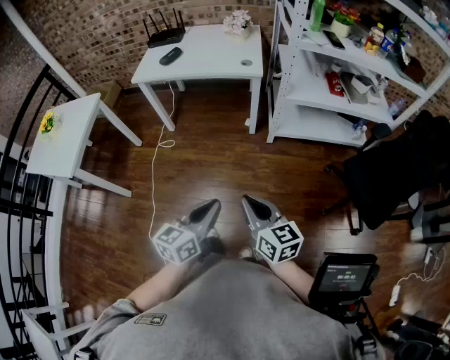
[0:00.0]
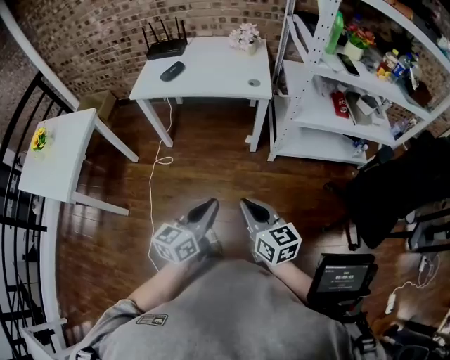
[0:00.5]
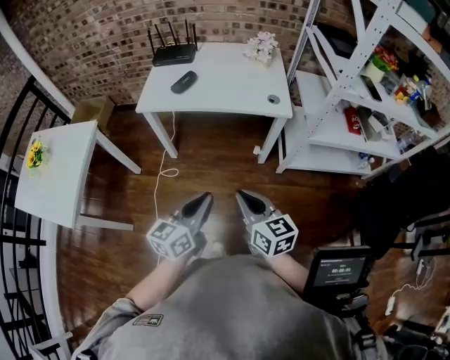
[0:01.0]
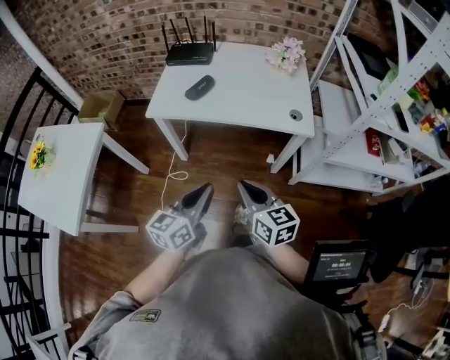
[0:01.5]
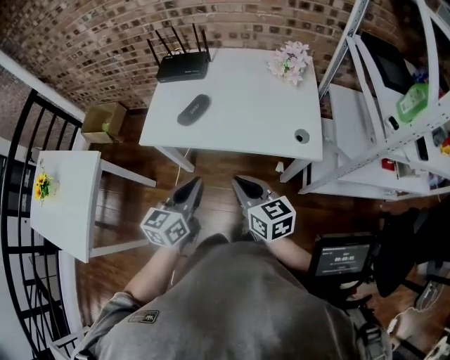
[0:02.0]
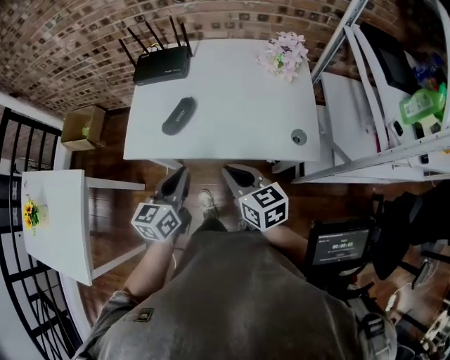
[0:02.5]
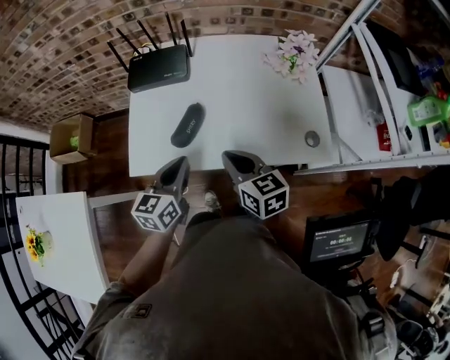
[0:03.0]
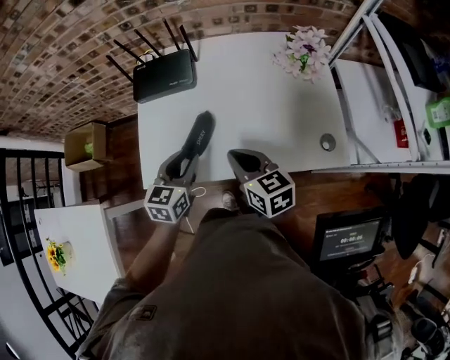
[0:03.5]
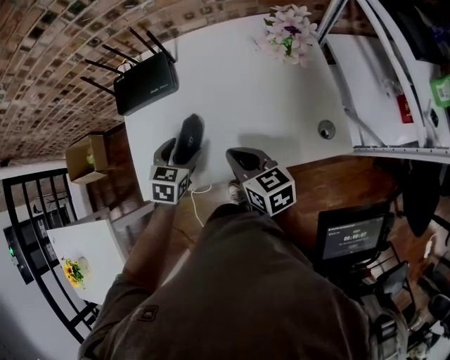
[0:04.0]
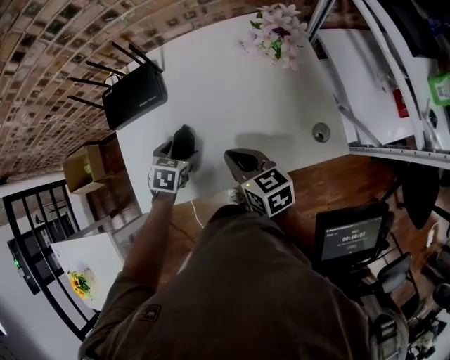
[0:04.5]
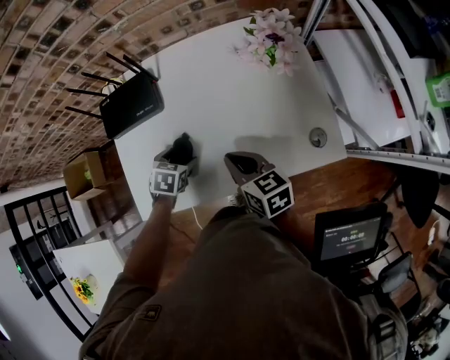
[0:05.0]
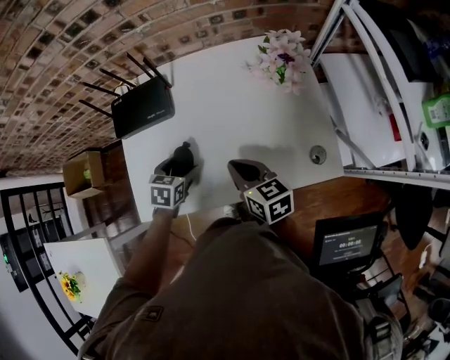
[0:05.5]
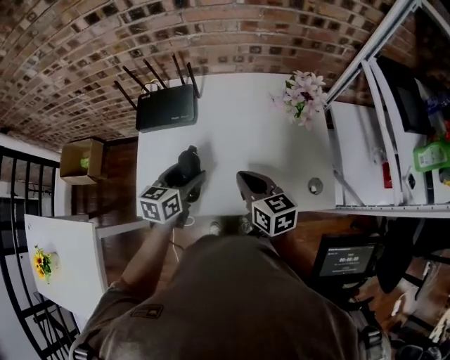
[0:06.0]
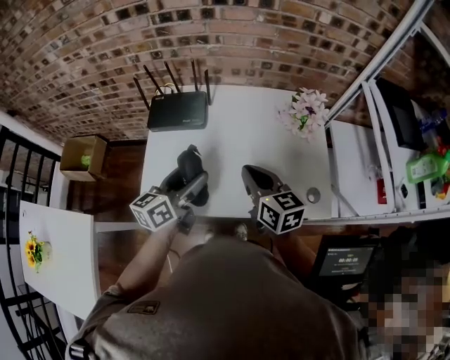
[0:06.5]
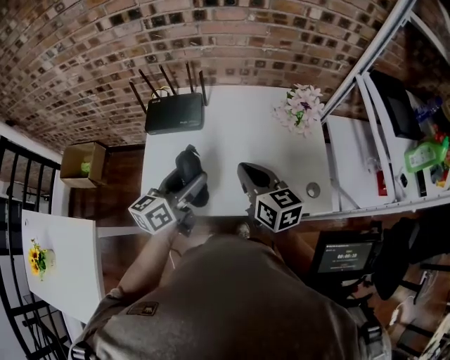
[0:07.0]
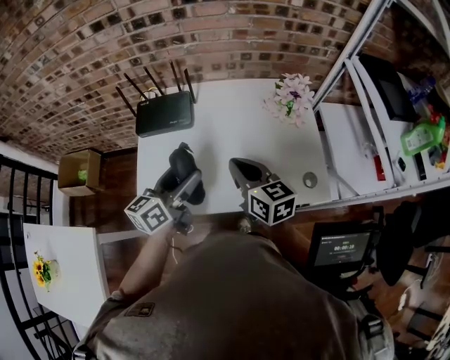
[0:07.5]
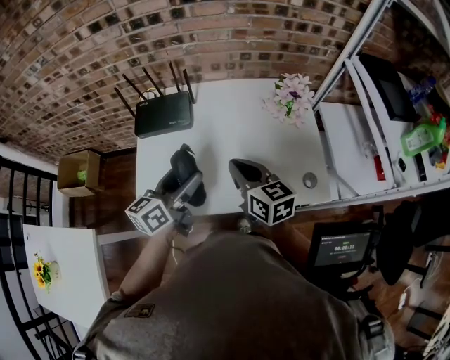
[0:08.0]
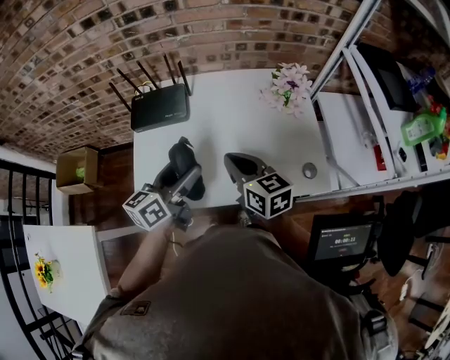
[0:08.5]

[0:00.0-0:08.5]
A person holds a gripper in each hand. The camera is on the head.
0:00.0 to 0:02.0: The pair of grippers is taken forward, roughly 60 cm.
0:02.0 to 0:04.0: The left gripper is displaced forward and downward by approximately 35 cm, points its fingers roughly 30 degrees further downward, and opens its fingers. Meanwhile the right gripper heads forward, covering some 25 cm.
0:04.0 to 0:06.5: The right gripper heads upward, covering some 10 cm; the left gripper moves upward, roughly 15 cm, and tilts its fingers roughly 40 degrees upward.
0:06.5 to 0:08.5: There are only small adjustments of the grippers.

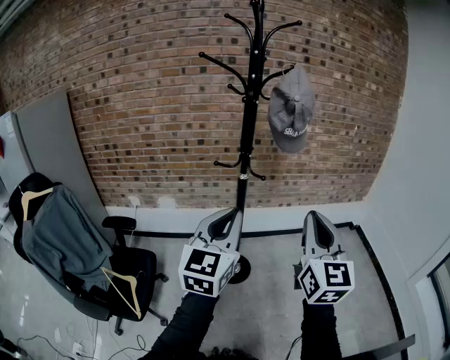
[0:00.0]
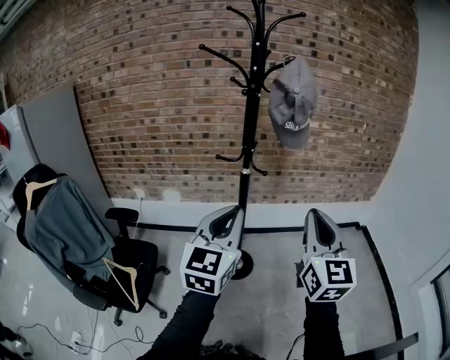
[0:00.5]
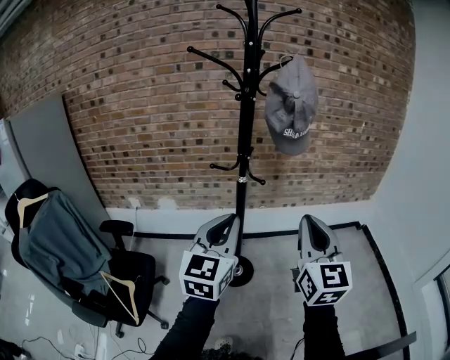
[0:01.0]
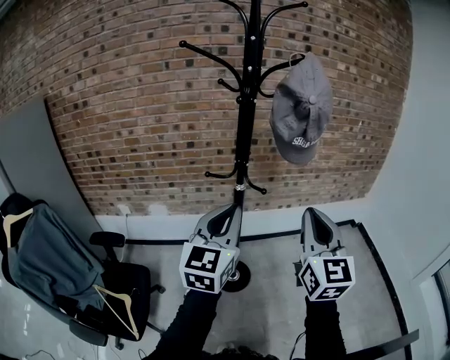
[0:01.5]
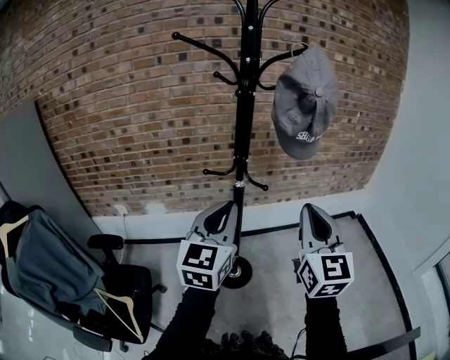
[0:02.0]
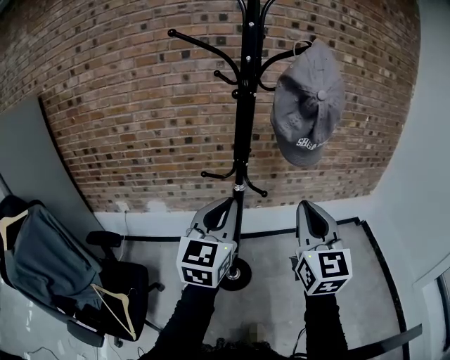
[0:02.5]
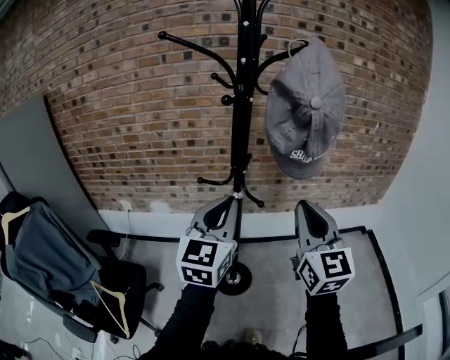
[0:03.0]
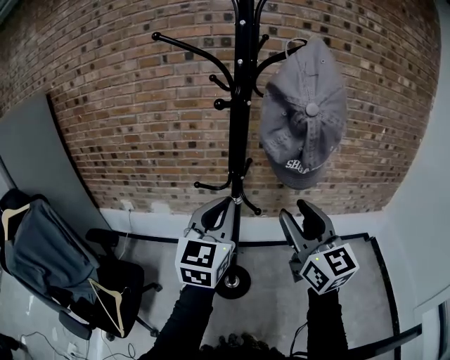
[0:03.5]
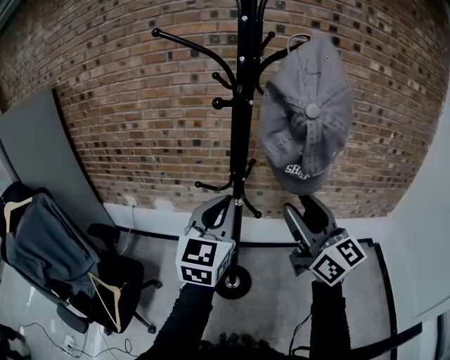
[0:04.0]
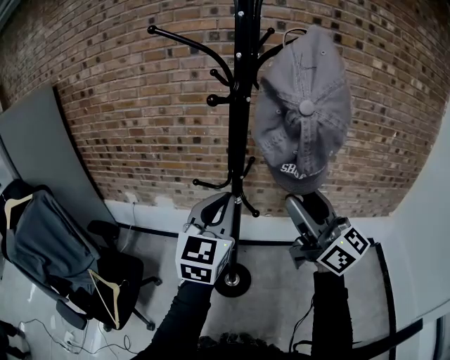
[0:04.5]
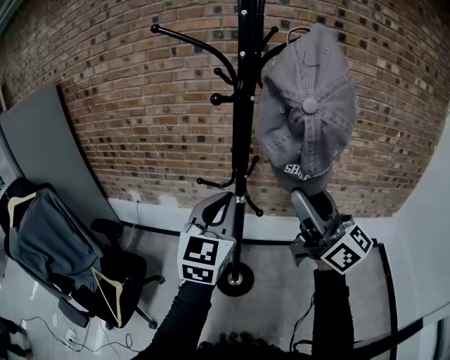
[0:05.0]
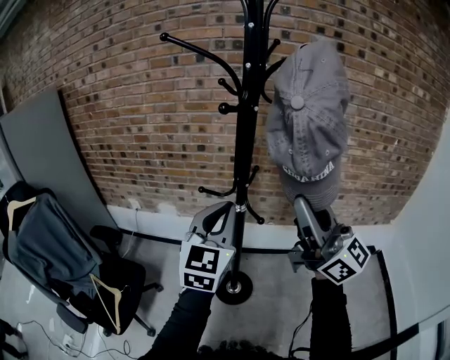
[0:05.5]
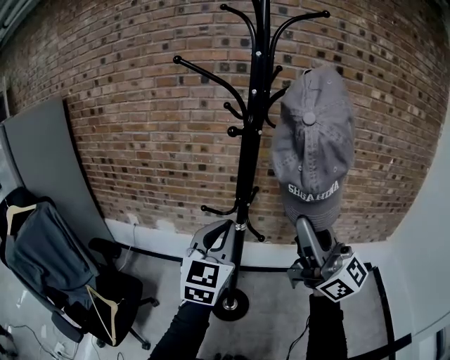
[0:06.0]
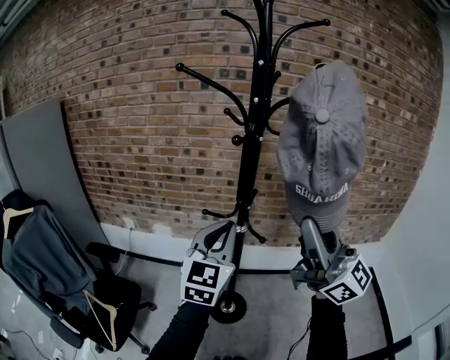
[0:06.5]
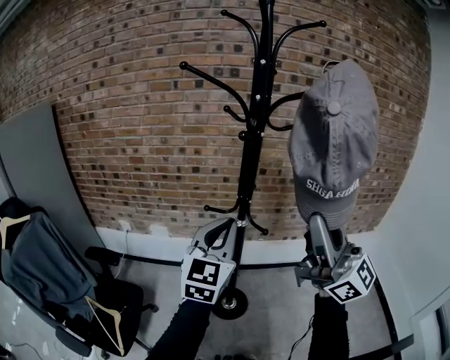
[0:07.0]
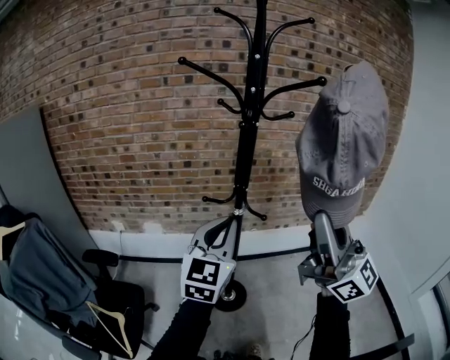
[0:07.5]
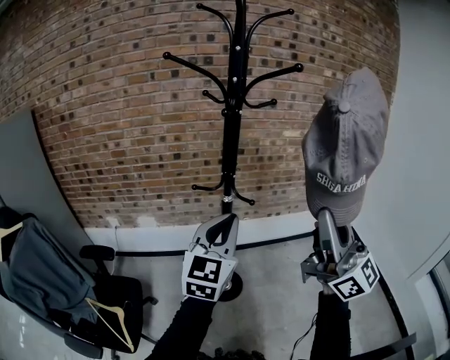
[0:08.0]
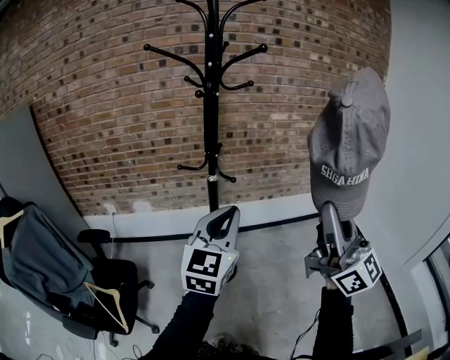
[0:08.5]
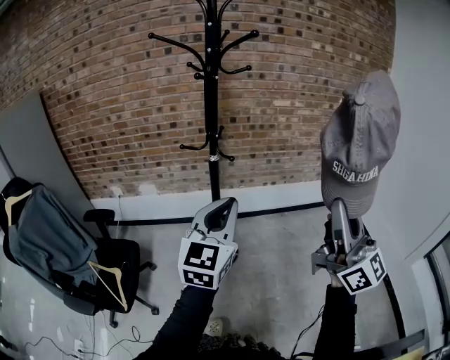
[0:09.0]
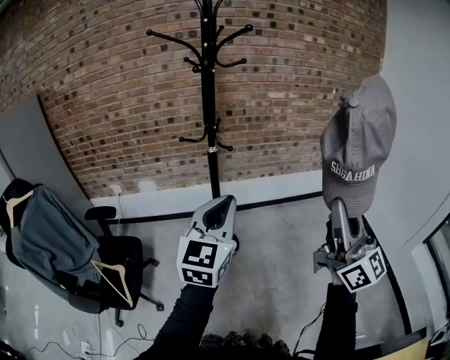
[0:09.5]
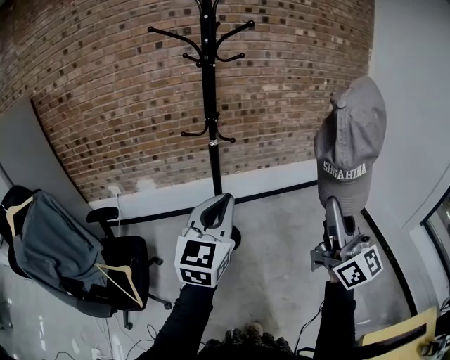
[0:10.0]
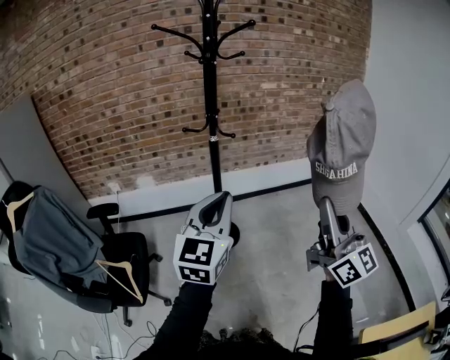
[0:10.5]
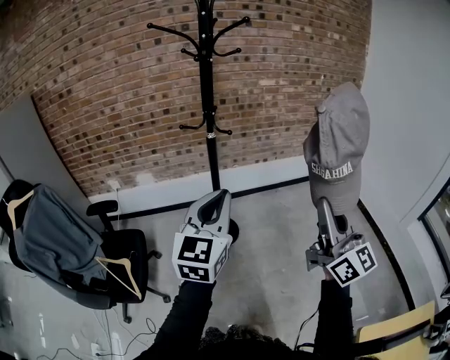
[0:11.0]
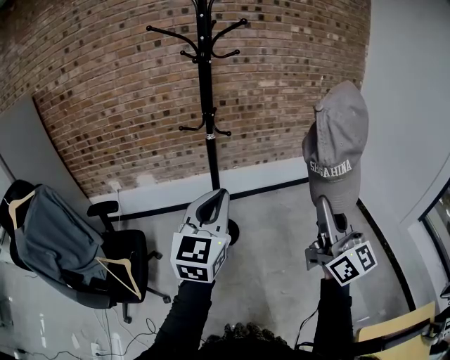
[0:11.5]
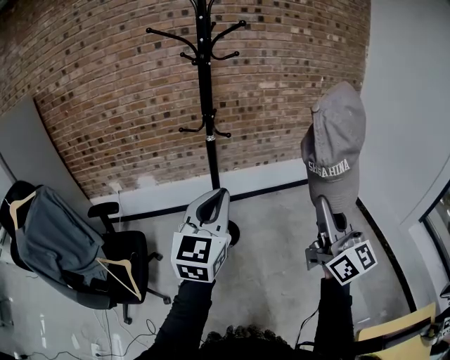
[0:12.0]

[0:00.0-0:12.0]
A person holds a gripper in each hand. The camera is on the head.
0:00.0 to 0:02.0: The two grippers go about 15 cm forward.
0:02.0 to 0:04.0: The left gripper travels forward and to the right by roughly 10 cm; the right gripper is displaced forward by some 15 cm, turns by approximately 40 degrees, and opens.
0:04.0 to 0:06.0: The right gripper shifts approximately 5 cm upward, turns by approximately 20 degrees, and closes its fingers.
0:06.0 to 0:08.0: Both grippers travel together backward, roughly 15 cm. The right gripper rotates approximately 20 degrees.
0:08.0 to 0:10.0: The right gripper travels backward and downward by some 20 cm. Meanwhile the left gripper heads backward, covering some 20 cm.
0:10.0 to 0:12.0: The grippers make only small movements.

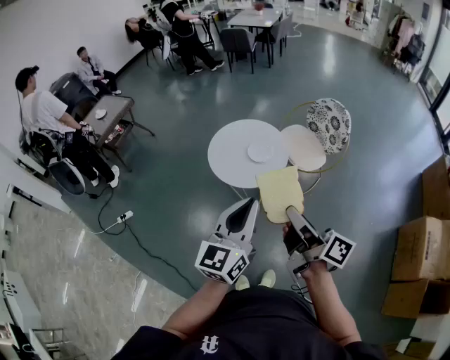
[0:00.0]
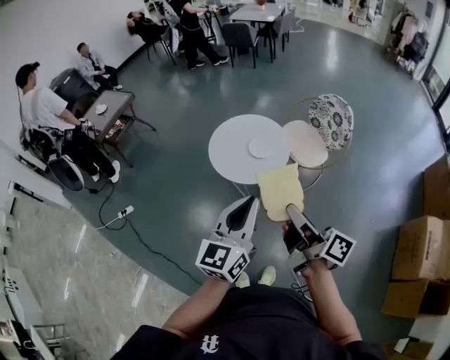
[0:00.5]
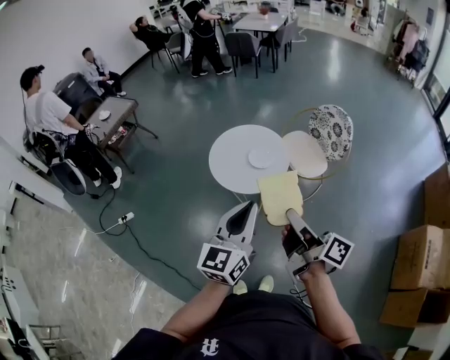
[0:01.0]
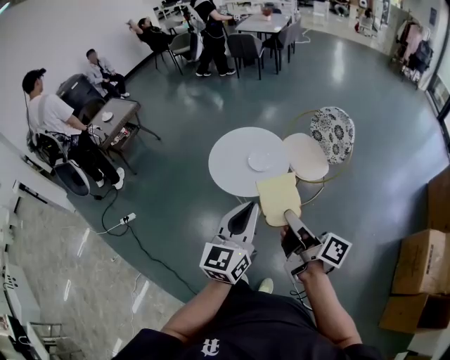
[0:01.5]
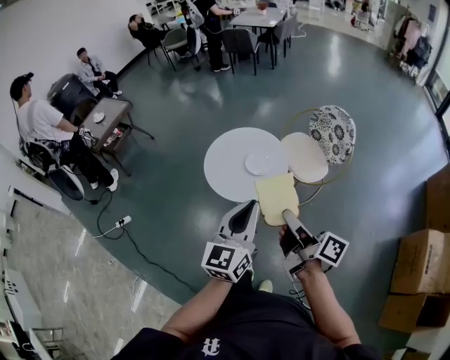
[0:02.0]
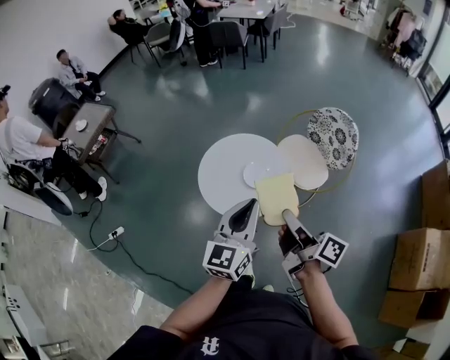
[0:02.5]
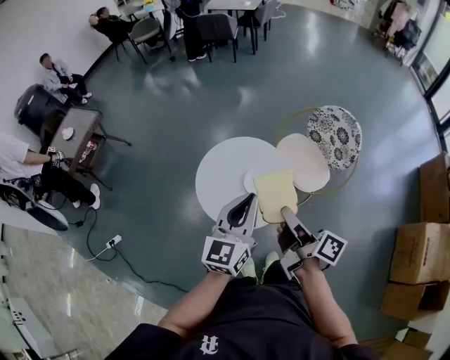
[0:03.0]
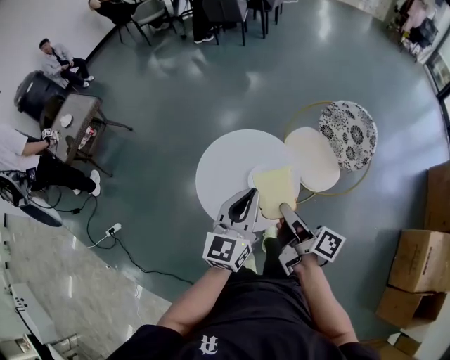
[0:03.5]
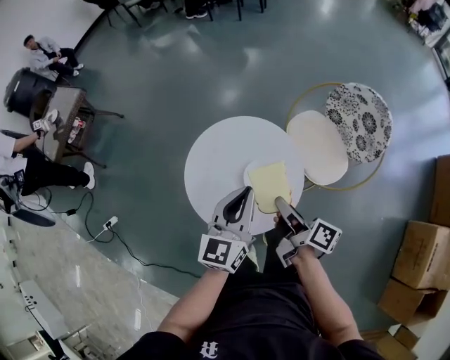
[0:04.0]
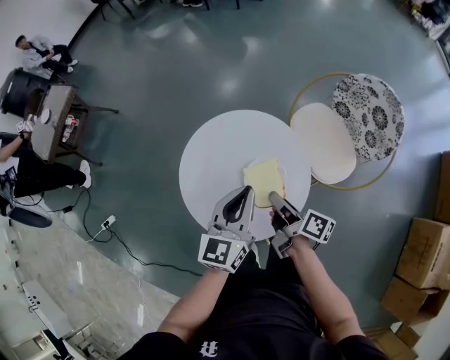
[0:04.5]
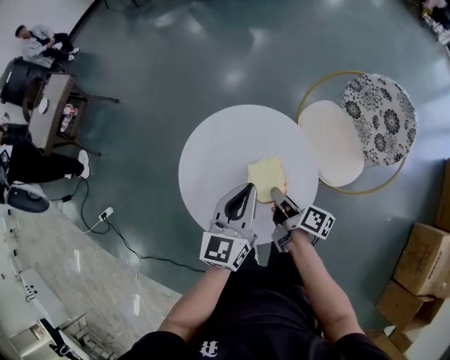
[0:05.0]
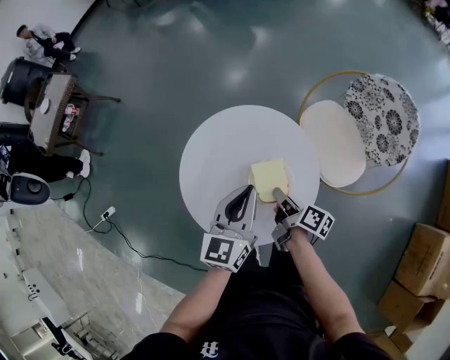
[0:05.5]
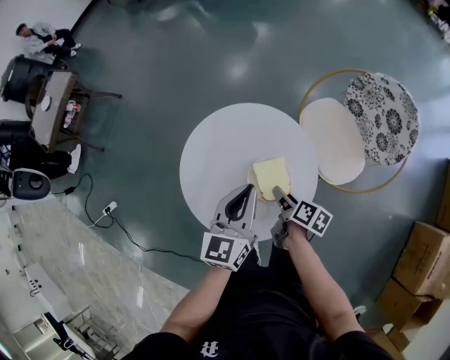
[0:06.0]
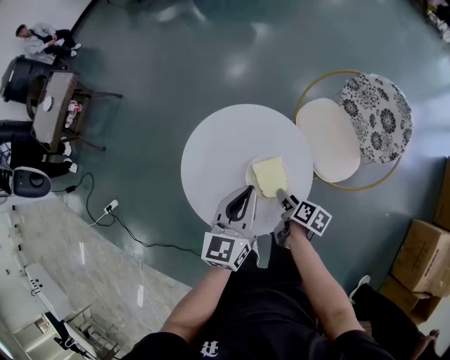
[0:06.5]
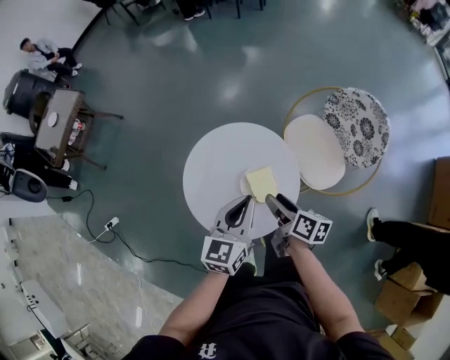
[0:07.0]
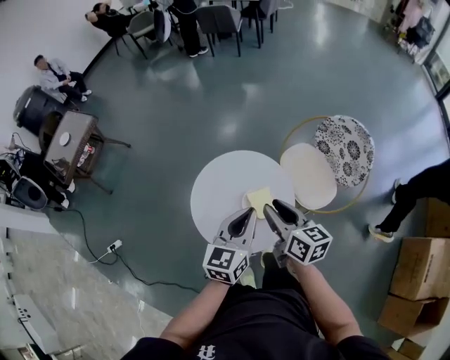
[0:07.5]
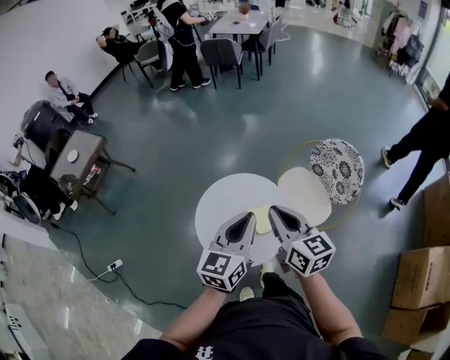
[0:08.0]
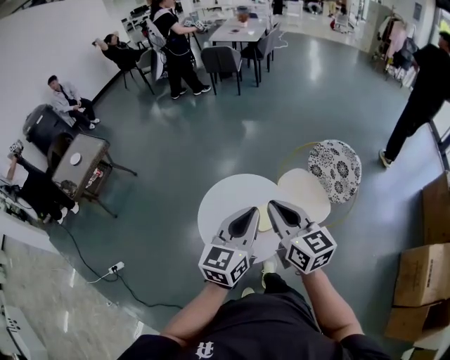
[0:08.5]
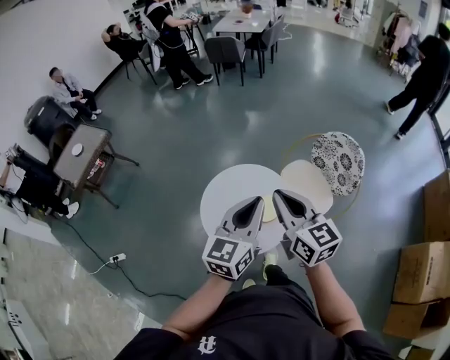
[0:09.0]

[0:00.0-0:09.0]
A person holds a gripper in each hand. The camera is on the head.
0:00.0 to 0:02.0: Both grippers travel together forward, some 10 cm.
0:02.0 to 0:04.5: The two grippers go about 50 cm forward and downward. The right gripper rotates roughly 20 degrees.
0:04.5 to 0:07.0: The right gripper travels downward and back again, roughly 10 cm each way, and opens its fingers.
0:07.0 to 0:09.0: Both grippers travel together upward, about 25 cm. The right gripper twists approximately 50 degrees counterclockwise, seen from behind, and closes its fingers.
